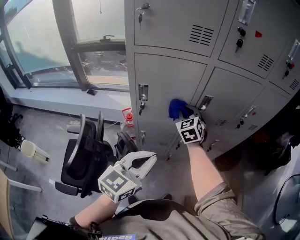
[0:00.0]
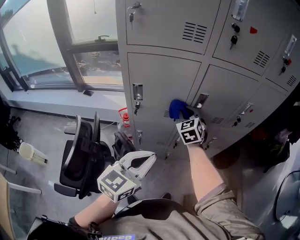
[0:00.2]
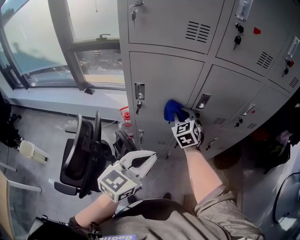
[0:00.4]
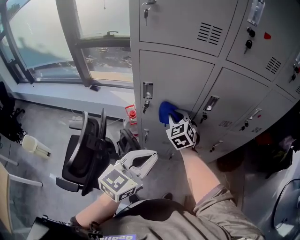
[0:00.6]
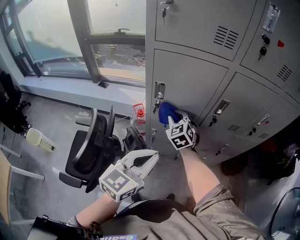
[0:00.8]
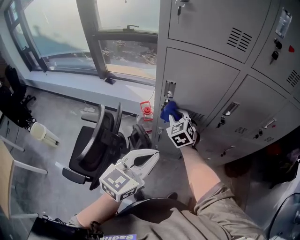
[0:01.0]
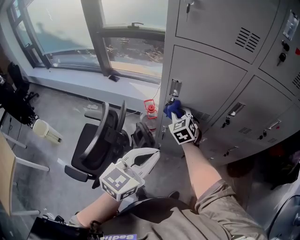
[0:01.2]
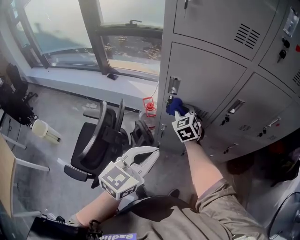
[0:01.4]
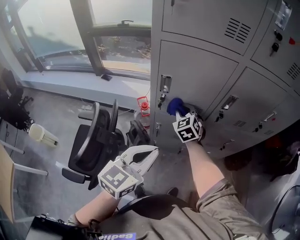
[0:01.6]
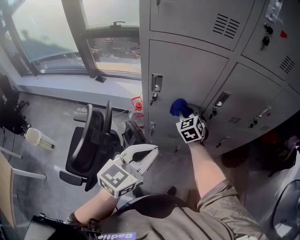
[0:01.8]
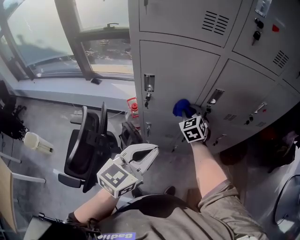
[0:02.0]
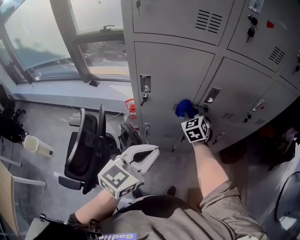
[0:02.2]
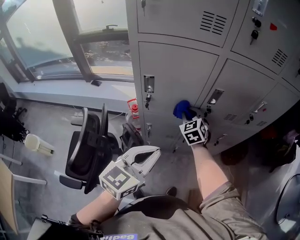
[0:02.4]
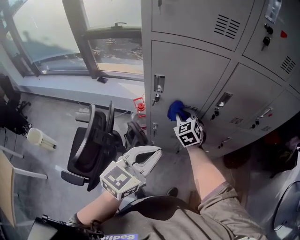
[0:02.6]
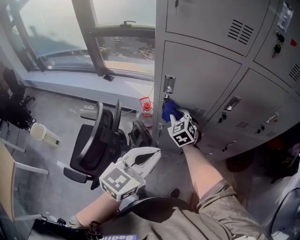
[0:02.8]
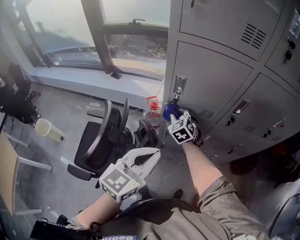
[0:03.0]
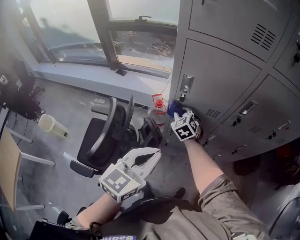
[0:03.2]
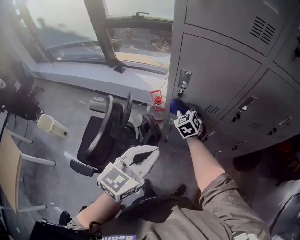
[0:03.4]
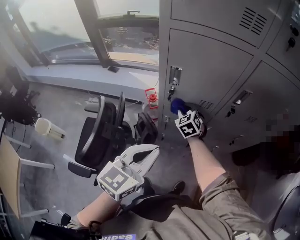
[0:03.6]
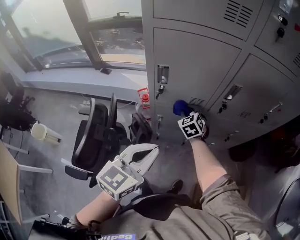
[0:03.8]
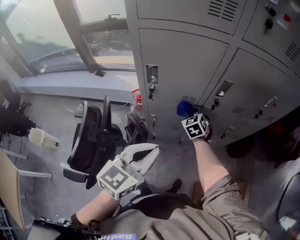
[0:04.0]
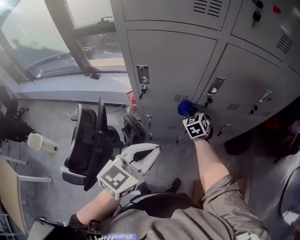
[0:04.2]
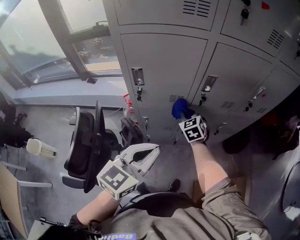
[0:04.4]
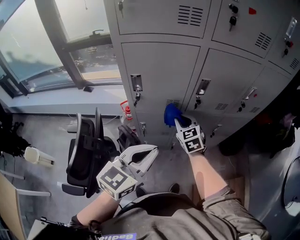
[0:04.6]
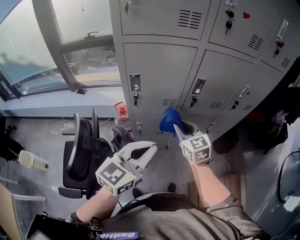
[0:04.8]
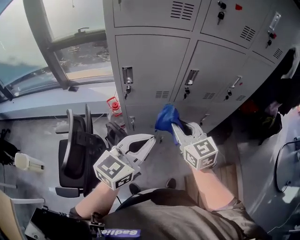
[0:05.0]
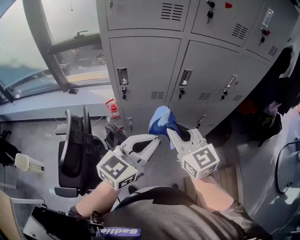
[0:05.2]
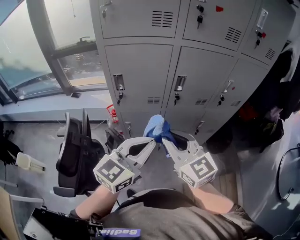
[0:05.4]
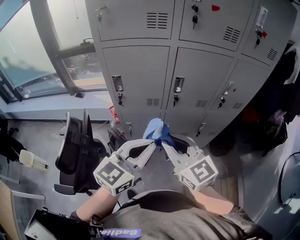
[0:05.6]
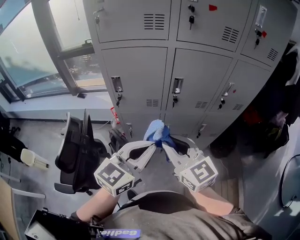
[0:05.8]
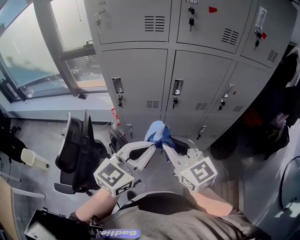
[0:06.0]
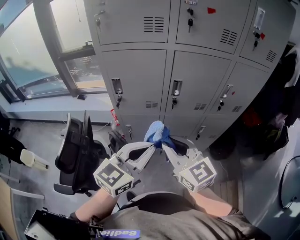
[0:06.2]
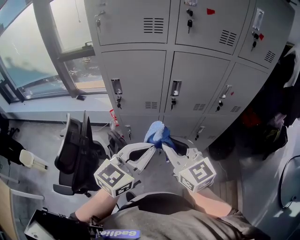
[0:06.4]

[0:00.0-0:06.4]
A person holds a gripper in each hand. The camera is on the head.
0:00.0 to 0:01.6: The right gripper shifts approximately 15 cm to the left and downward, while the left gripper goes approximately 5 cm to the left.
0:01.6 to 0:03.2: The right gripper is displaced to the left and downward by approximately 10 cm.
0:03.2 to 0:04.8: The left gripper heads to the right, covering some 10 cm. Meanwhile the right gripper goes roughly 25 cm to the right, upward and backward, and swivels some 30 degrees.
0:04.8 to 0:06.4: The right gripper travels backward, upward and to the right by some 20 cm, and rotates about 20 degrees; the left gripper shifts some 10 cm to the right.

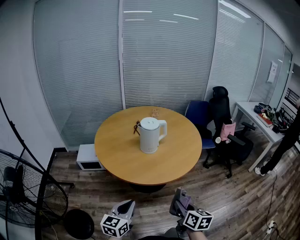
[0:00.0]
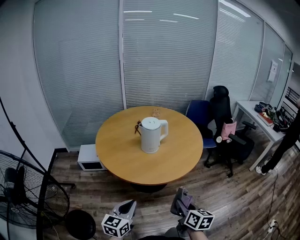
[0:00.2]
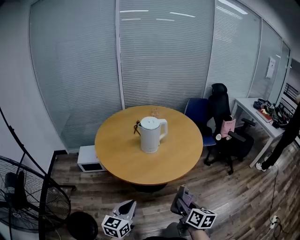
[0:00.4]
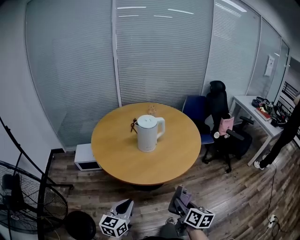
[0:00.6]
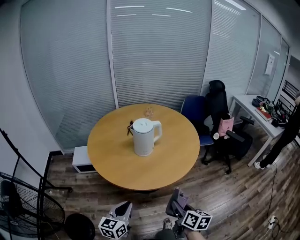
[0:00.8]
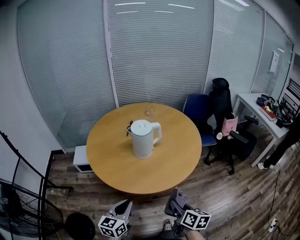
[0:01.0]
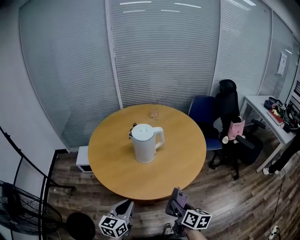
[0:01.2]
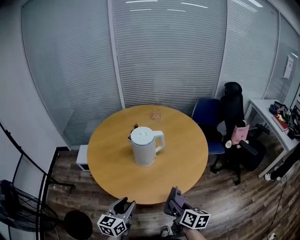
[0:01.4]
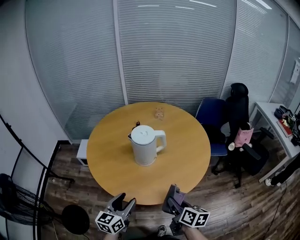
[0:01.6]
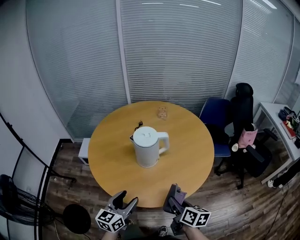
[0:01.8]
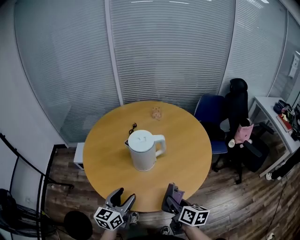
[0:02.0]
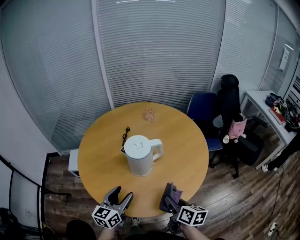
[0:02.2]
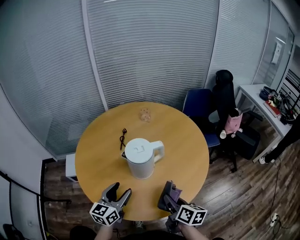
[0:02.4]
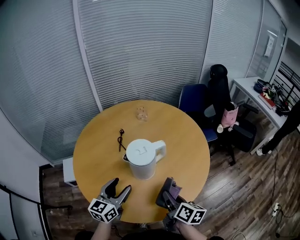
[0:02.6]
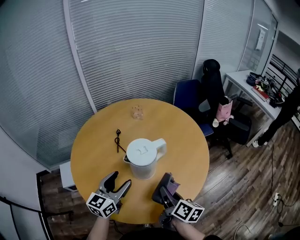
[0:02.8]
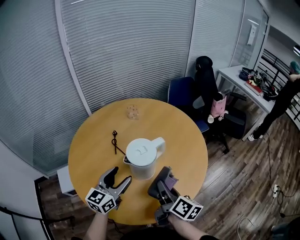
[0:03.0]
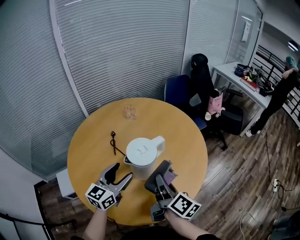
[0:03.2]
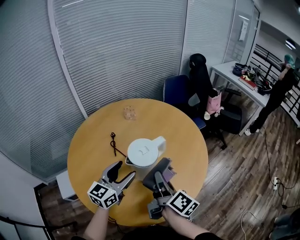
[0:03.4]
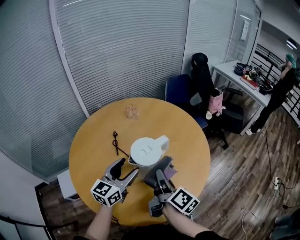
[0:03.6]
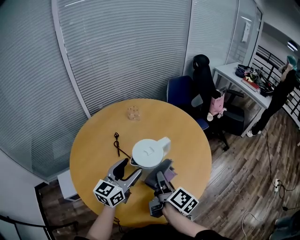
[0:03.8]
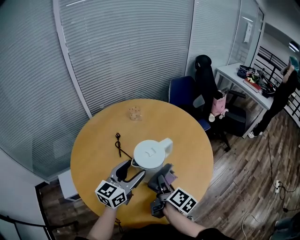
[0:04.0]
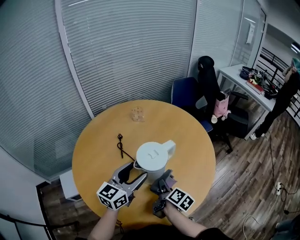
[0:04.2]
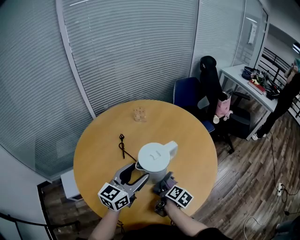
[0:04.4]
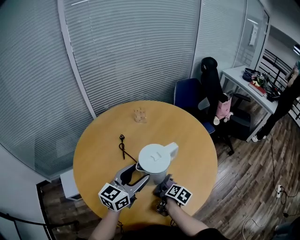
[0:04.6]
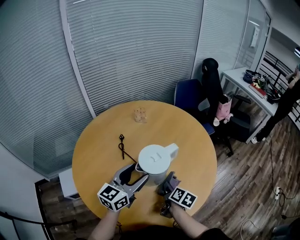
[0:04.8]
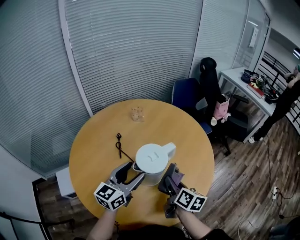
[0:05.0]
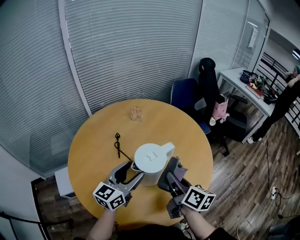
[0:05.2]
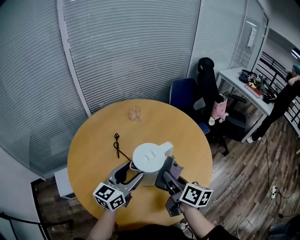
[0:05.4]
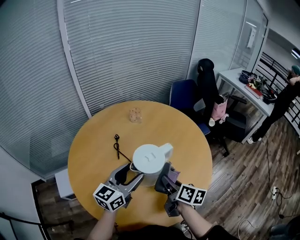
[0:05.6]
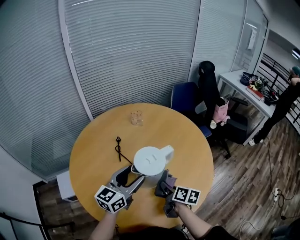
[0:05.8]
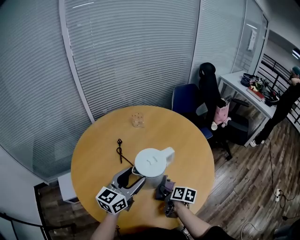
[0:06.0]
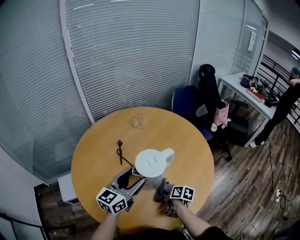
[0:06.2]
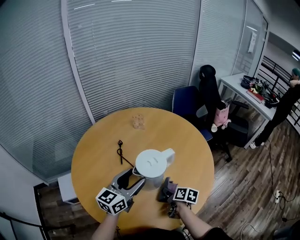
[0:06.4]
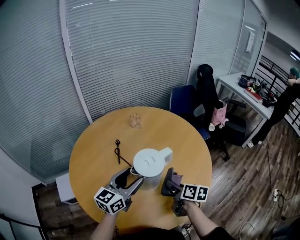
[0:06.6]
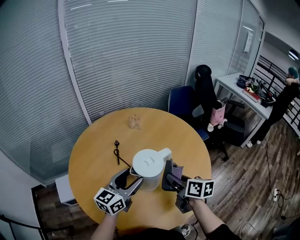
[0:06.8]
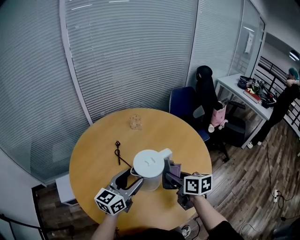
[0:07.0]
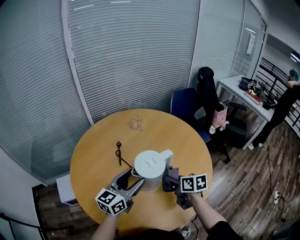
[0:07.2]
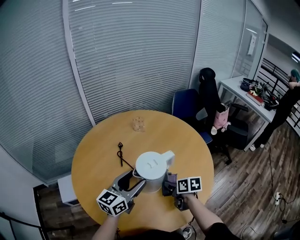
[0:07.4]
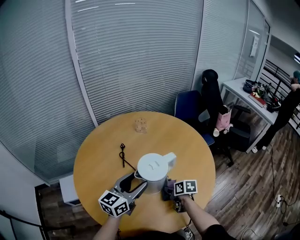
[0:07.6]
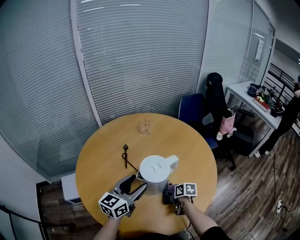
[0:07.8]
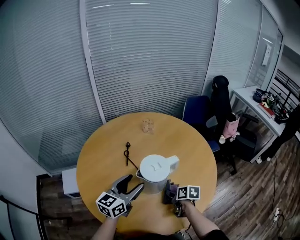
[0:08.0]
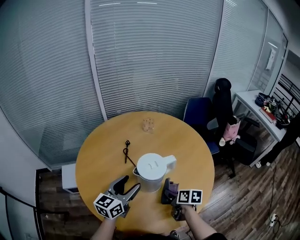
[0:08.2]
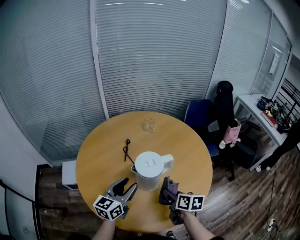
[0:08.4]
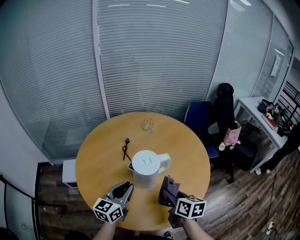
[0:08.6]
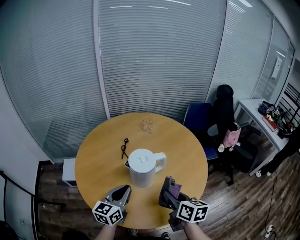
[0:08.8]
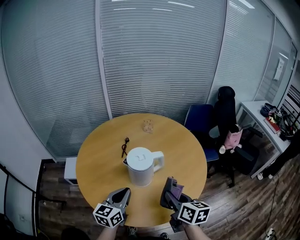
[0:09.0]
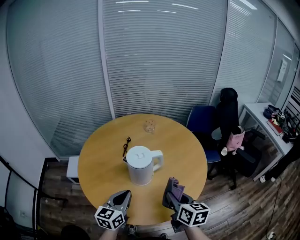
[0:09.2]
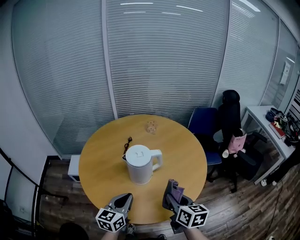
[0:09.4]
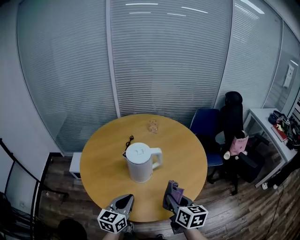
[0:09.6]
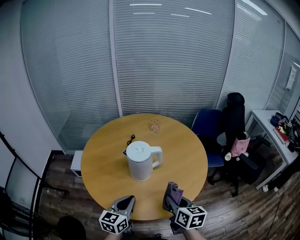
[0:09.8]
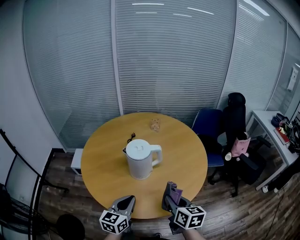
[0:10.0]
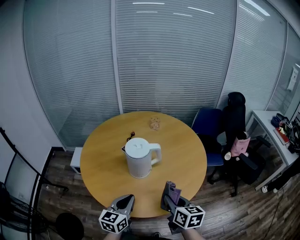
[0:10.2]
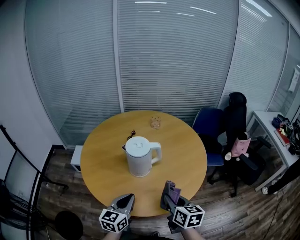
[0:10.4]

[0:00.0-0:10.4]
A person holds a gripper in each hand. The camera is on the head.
0:00.0 to 0:01.4: The grippers both shift forward by some 15 cm. The left gripper opens.
0:01.4 to 0:03.0: The right gripper ends up some 20 cm from where it was, and turns by some 40 degrees, while the left gripper moves about 30 cm, turns by some 30 degrees, and opens.
0:03.0 to 0:04.4: The right gripper is displaced downward by roughly 15 cm, and turns by some 30 degrees.
0:04.4 to 0:06.0: The right gripper reaches approximately 20 cm upward, then returns, and turns by roughly 20 degrees.
0:06.0 to 0:07.4: The right gripper travels upward and back again, about 15 cm each way, and changes its angle by about 20 degrees.
0:07.4 to 0:09.0: The left gripper is displaced backward by some 10 cm, rotates roughly 30 degrees, and closes up, while the right gripper goes some 20 cm upward and backward, and swivels about 20 degrees.
0:09.0 to 0:10.4: The right gripper travels backward by approximately 5 cm. The left gripper is displaced backward and to the right by roughly 10 cm.

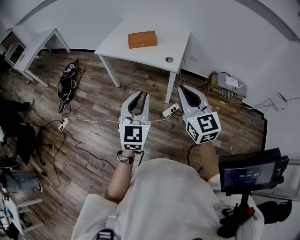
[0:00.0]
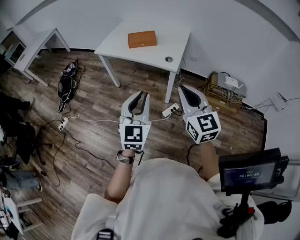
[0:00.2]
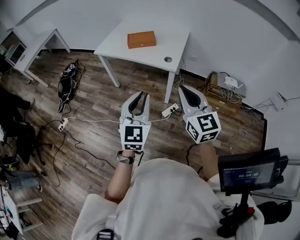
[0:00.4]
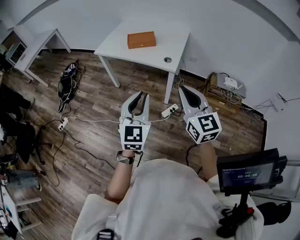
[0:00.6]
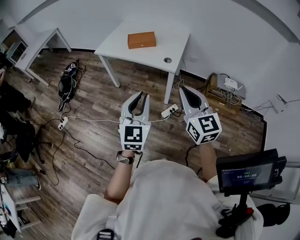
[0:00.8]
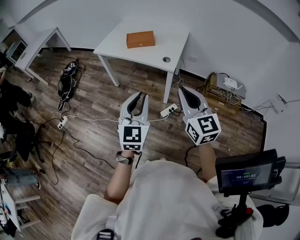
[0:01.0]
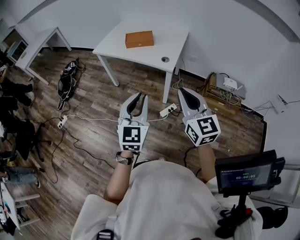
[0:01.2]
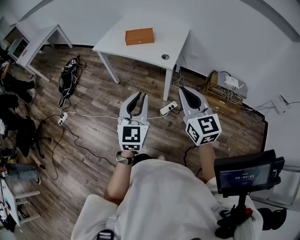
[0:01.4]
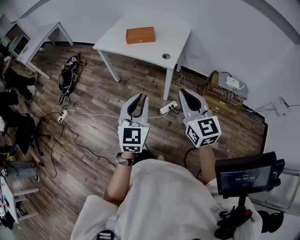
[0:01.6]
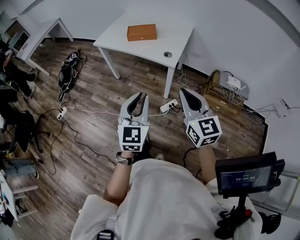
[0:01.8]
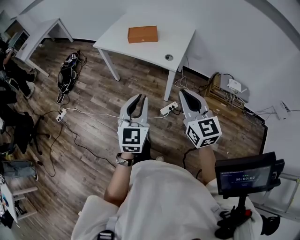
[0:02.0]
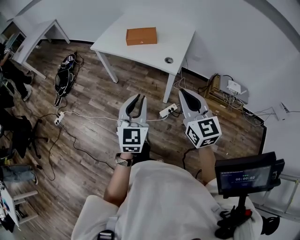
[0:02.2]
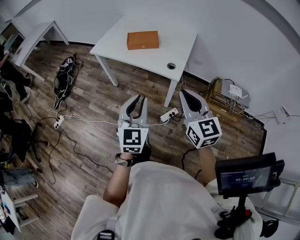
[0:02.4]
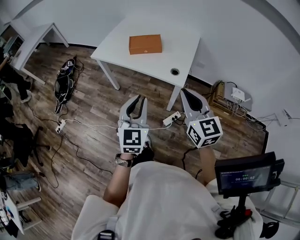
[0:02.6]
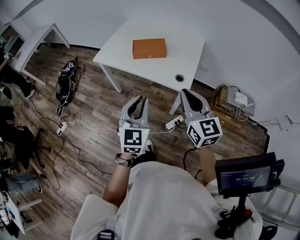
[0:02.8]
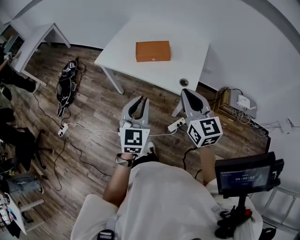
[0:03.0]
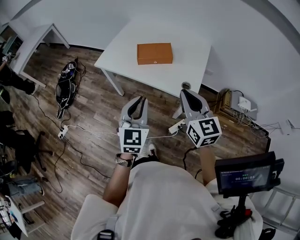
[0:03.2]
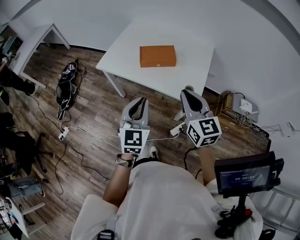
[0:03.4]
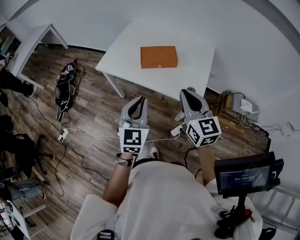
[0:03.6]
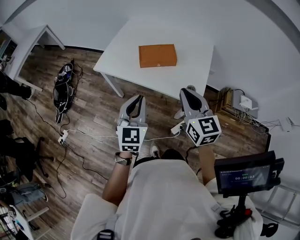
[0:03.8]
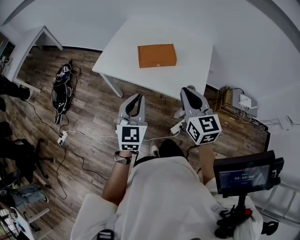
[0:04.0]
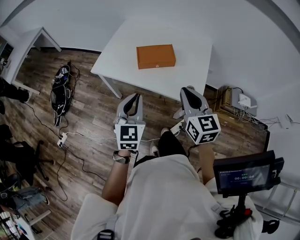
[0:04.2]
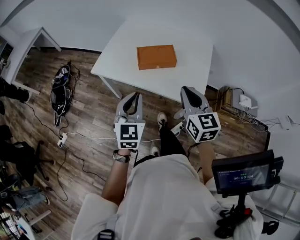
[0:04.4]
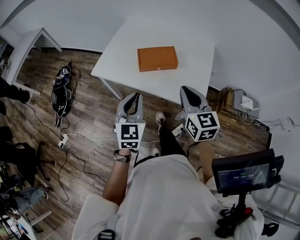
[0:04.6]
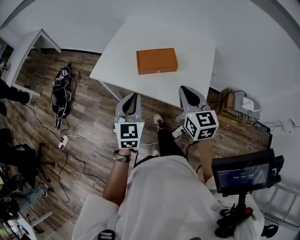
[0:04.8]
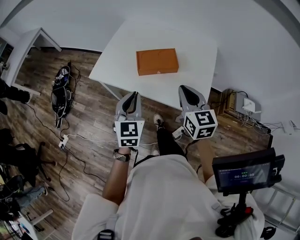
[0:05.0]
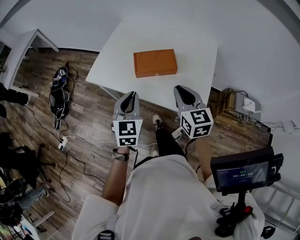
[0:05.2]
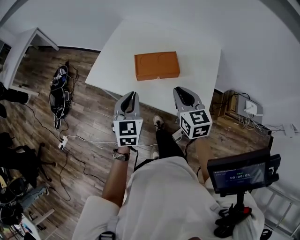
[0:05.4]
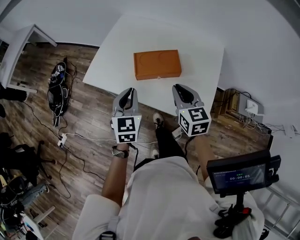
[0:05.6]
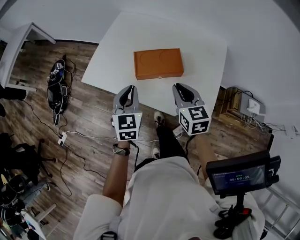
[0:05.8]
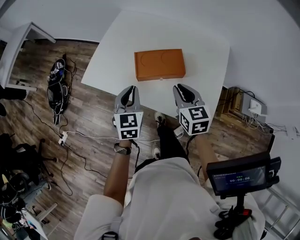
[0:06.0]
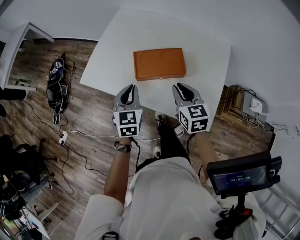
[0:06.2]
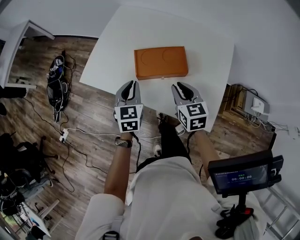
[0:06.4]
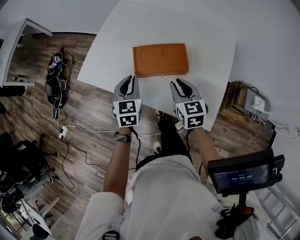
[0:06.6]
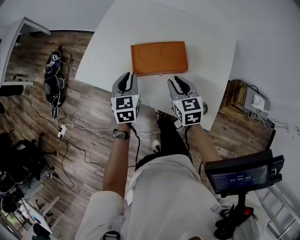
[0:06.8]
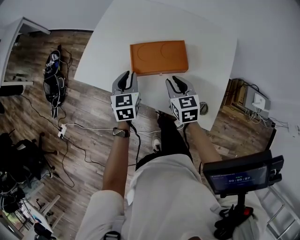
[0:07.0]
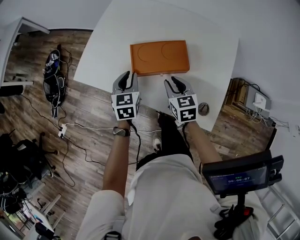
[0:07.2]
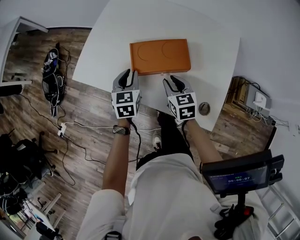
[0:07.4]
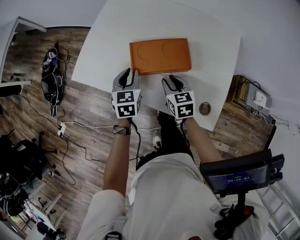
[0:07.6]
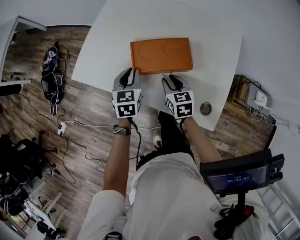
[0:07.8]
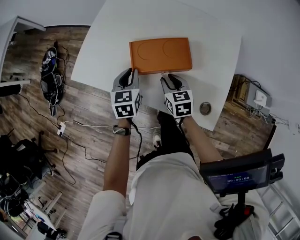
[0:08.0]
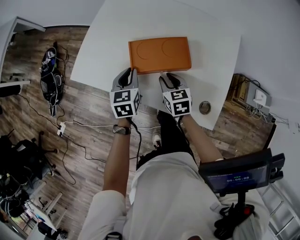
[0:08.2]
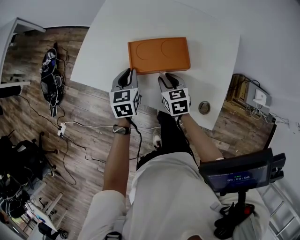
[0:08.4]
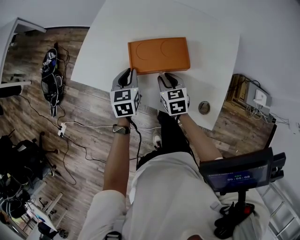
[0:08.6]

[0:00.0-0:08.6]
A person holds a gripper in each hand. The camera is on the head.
0:00.0 to 0:01.4: The right gripper heads to the right, covering some 5 cm. The left gripper changes place by roughly 5 cm.
0:01.4 to 0:02.8: Both grippers travel together forward, approximately 20 cm.
0:02.8 to 0:04.4: The right gripper shifts roughly 15 cm forward. The left gripper shifts about 20 cm forward and to the left.
0:04.4 to 0:05.8: The grippers both shift forward and downward by roughly 20 cm.
0:05.8 to 0:07.2: The two grippers go about 15 cm downward and forward.
0:07.2 to 0:08.6: The grippers make only small movements.
